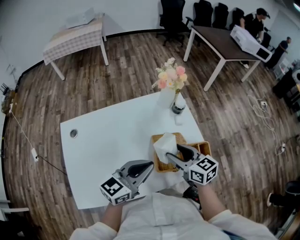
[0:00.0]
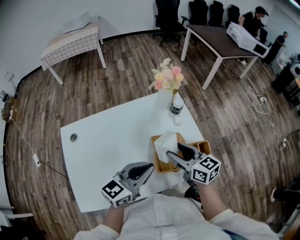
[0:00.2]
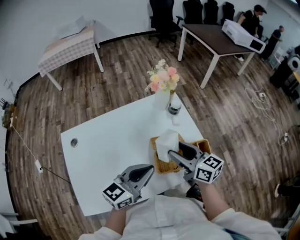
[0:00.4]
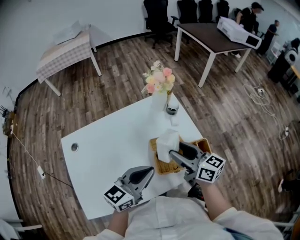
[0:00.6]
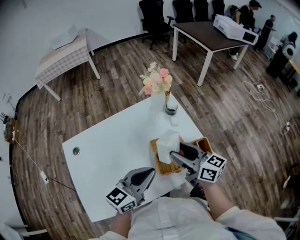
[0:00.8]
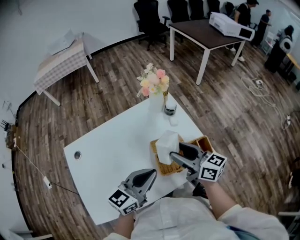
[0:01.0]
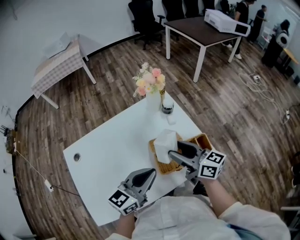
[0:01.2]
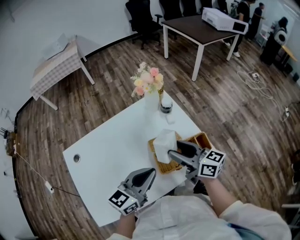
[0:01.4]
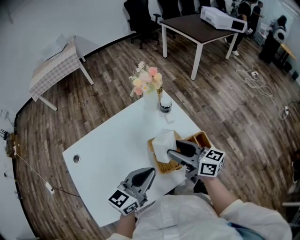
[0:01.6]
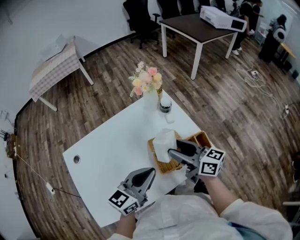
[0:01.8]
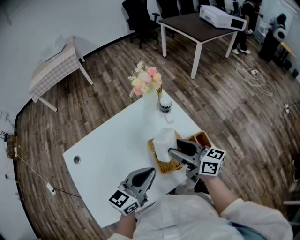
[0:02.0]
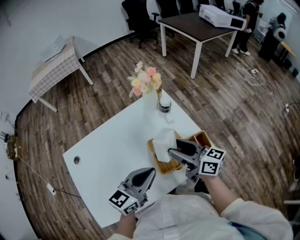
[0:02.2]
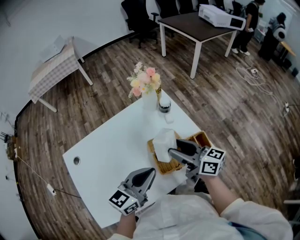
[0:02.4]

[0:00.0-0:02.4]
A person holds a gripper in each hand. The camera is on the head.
0:00.0 to 0:01.2: The right gripper travels upward by approximately 5 cm, and rotates some 20 degrees.
0:01.2 to 0:02.4: The two grippers keep their place.

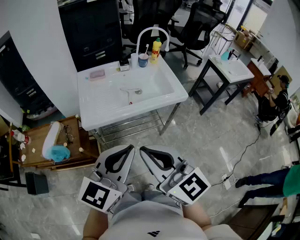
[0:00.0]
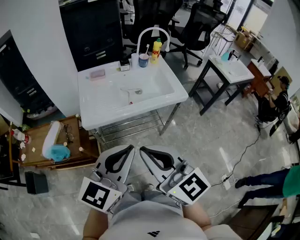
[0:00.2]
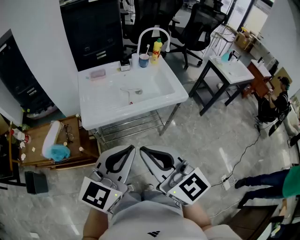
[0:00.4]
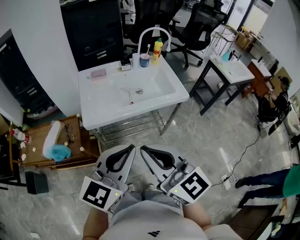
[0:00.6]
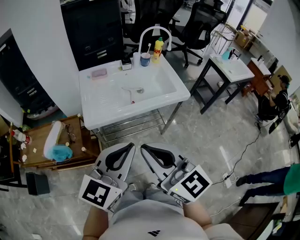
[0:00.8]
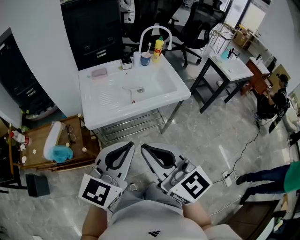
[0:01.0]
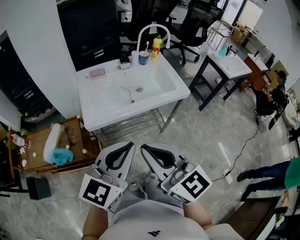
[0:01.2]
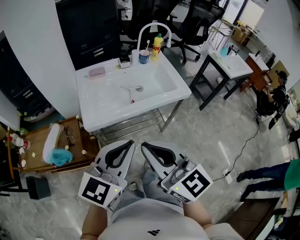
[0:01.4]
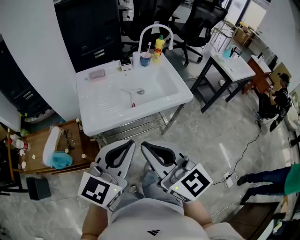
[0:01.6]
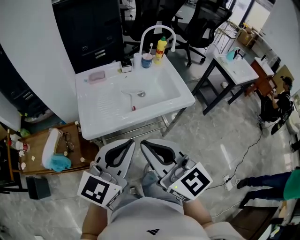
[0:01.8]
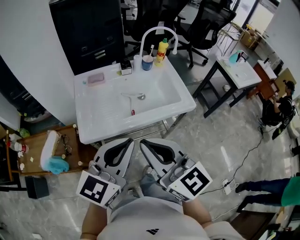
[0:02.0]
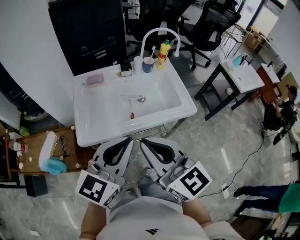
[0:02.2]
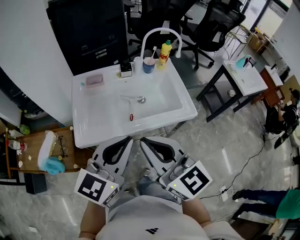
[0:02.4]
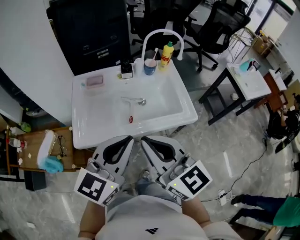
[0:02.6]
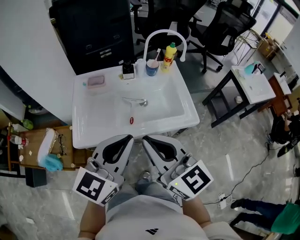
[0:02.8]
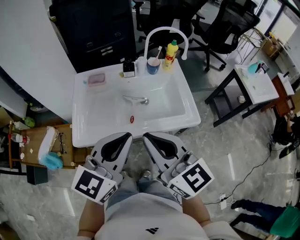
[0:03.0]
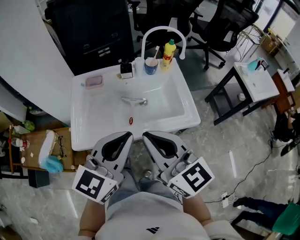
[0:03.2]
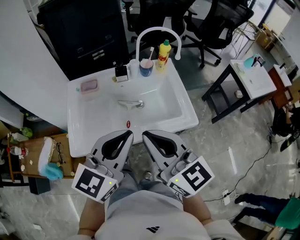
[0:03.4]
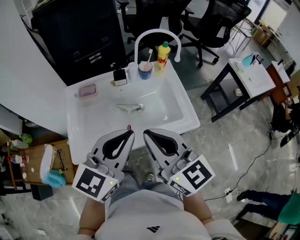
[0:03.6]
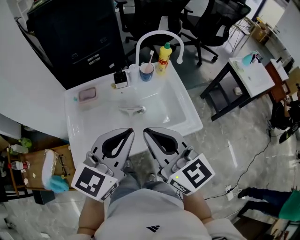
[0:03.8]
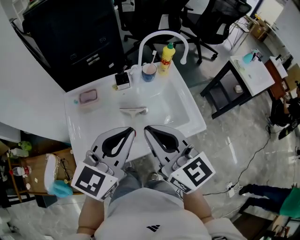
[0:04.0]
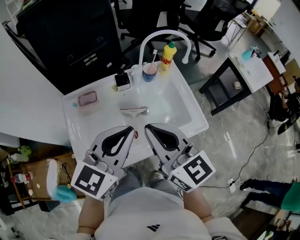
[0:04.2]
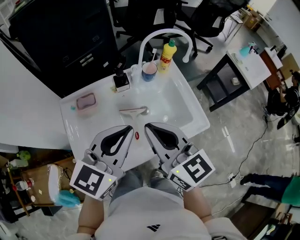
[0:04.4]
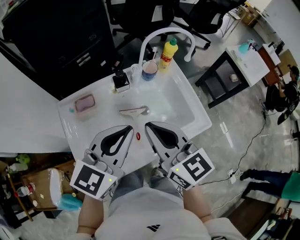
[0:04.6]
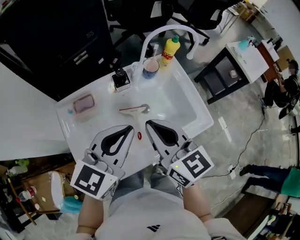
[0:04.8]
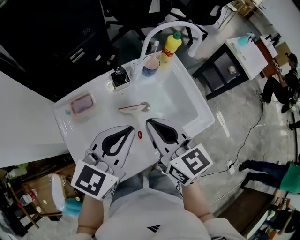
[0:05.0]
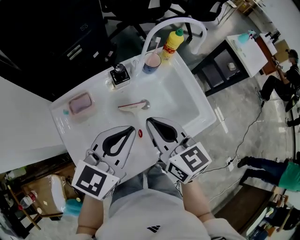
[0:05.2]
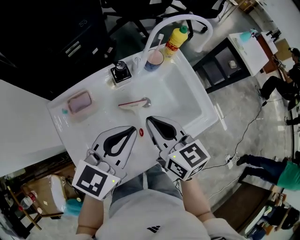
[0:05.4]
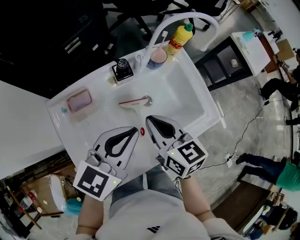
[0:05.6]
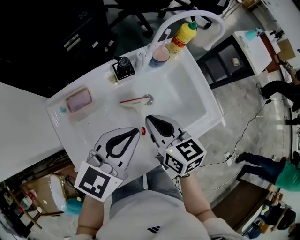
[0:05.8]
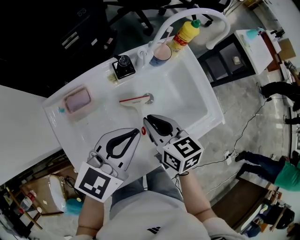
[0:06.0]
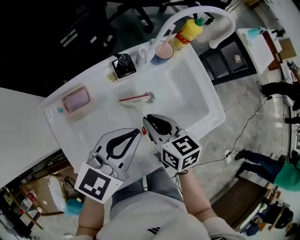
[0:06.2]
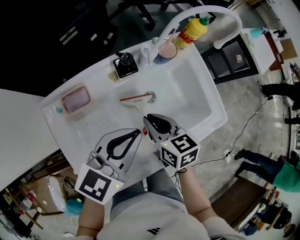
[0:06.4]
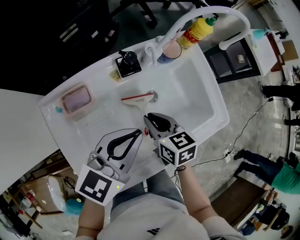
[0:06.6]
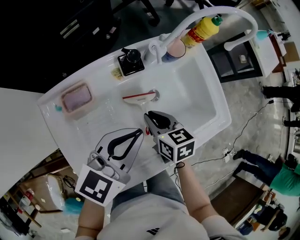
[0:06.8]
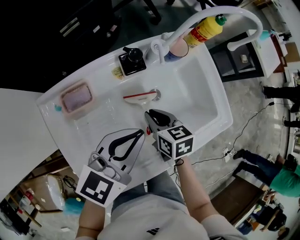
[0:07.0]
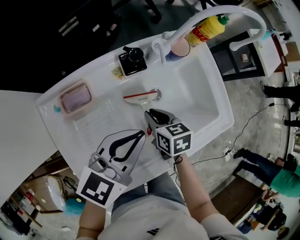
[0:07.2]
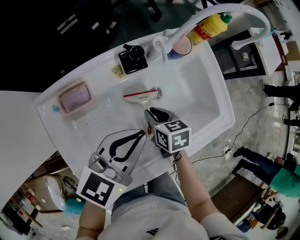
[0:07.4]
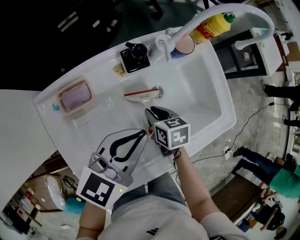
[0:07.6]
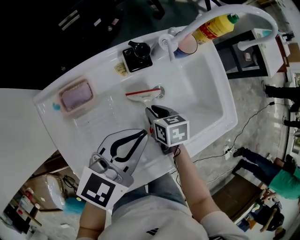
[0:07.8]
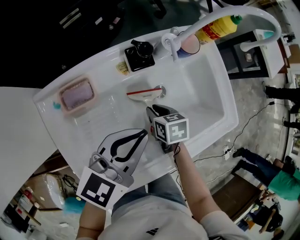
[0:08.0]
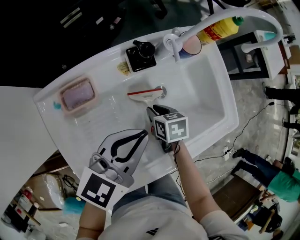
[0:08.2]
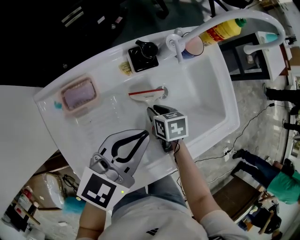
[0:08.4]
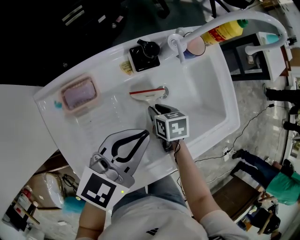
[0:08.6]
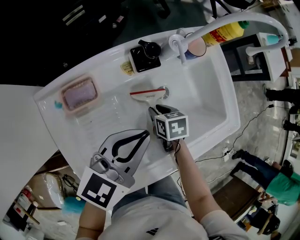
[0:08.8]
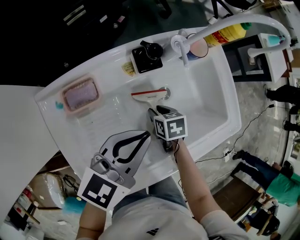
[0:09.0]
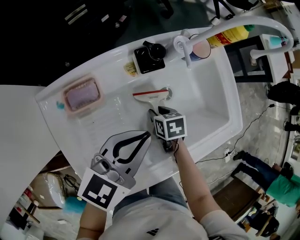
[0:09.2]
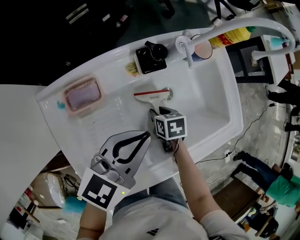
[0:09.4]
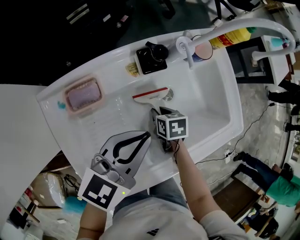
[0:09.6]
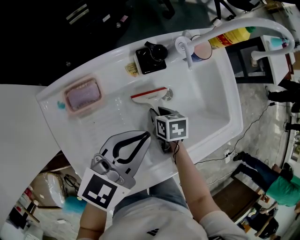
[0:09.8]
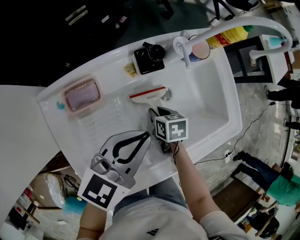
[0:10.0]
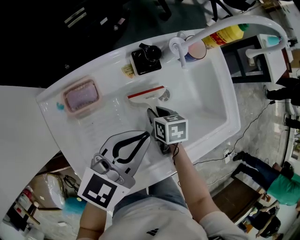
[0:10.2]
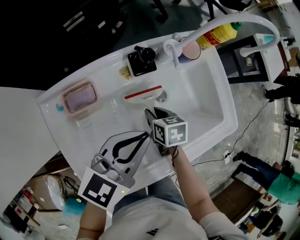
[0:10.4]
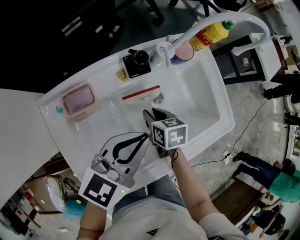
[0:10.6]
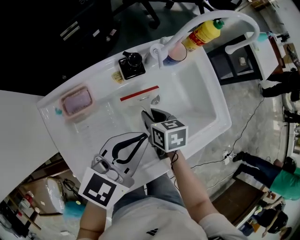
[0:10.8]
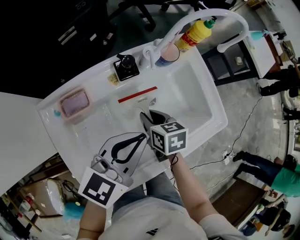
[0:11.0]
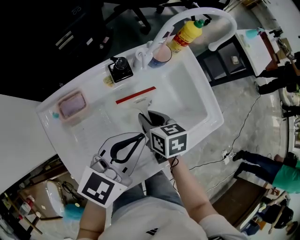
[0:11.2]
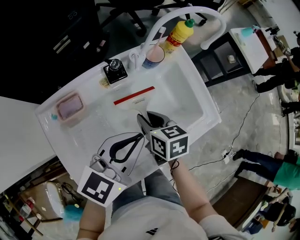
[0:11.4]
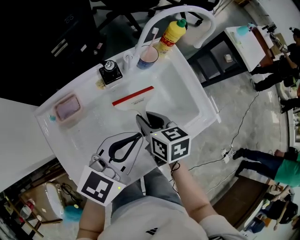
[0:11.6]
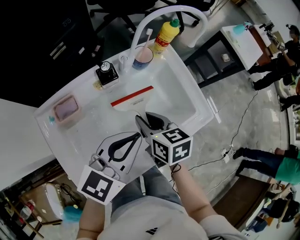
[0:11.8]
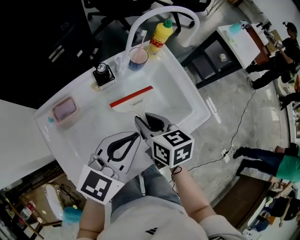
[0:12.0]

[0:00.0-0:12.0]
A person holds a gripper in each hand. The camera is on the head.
0:00.0 to 0:01.6: Both grippers travel together forward, approximately 5 cm.
0:01.6 to 0:03.0: Both grippers travel together forward and to the right, approximately 20 cm.
0:03.0 to 0:04.4: The grippers both shift forward by roughly 15 cm.
0:04.4 to 0:06.0: The right gripper is displaced downward and forward by about 20 cm, and swivels roughly 30 degrees; the left gripper shifts approximately 10 cm downward and forward.
0:06.0 to 0:07.6: The right gripper goes about 15 cm downward, and rotates roughly 20 degrees. The left gripper shifts by some 5 cm.
0:07.6 to 0:09.0: The right gripper is displaced downward by roughly 5 cm.
0:09.0 to 0:10.4: The grippers move only a little.
0:10.4 to 0:12.0: The right gripper travels upward by about 20 cm, and swivels roughly 20 degrees. The left gripper heads to the right and upward, covering approximately 10 cm.

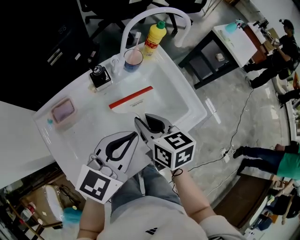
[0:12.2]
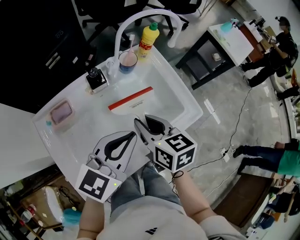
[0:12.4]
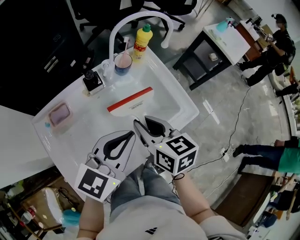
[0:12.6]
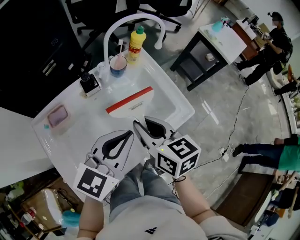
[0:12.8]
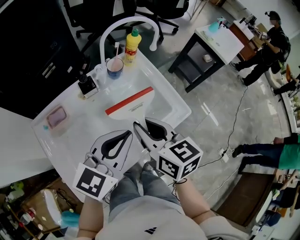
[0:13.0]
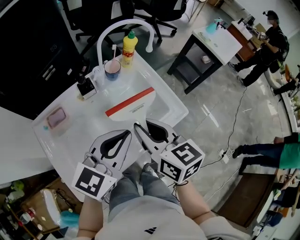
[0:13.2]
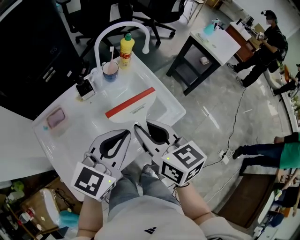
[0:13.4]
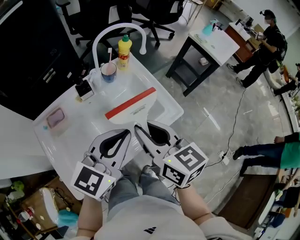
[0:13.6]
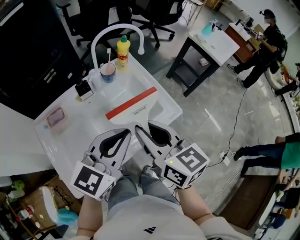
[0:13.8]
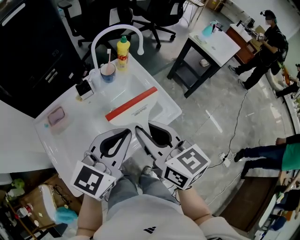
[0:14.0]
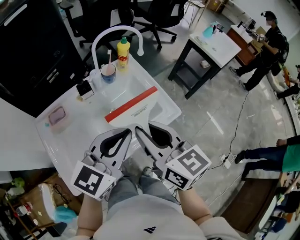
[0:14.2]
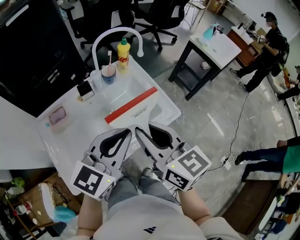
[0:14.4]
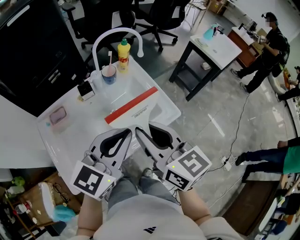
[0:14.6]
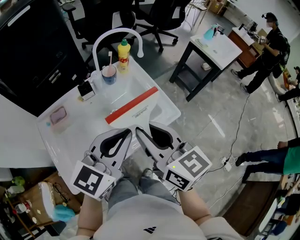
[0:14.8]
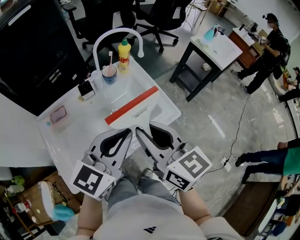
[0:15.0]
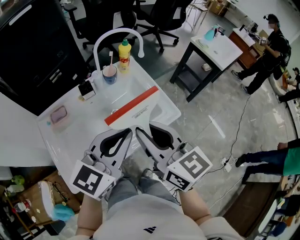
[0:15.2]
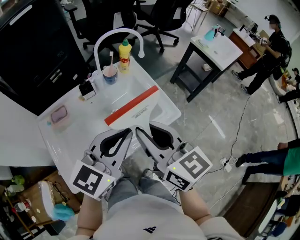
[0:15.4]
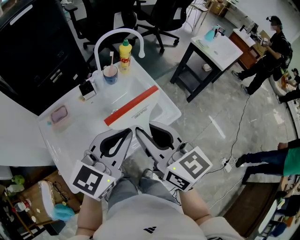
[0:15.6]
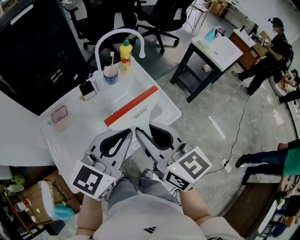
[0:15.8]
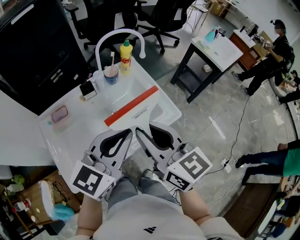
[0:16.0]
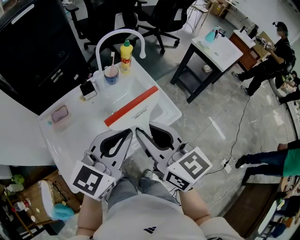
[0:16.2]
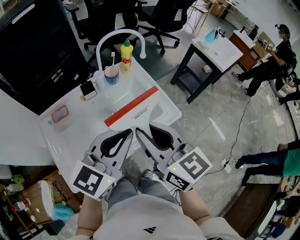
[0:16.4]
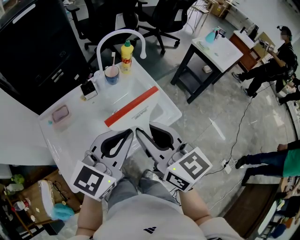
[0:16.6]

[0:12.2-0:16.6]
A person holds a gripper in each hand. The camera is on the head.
0:12.2 to 0:13.6: The left gripper shifts roughly 10 cm to the right and upward, while the right gripper shifts about 15 cm upward, to the right and backward.
0:13.6 to 0:15.2: The right gripper moves approximately 5 cm.
0:15.2 to 0:16.6: Both grippers stay about where they are.

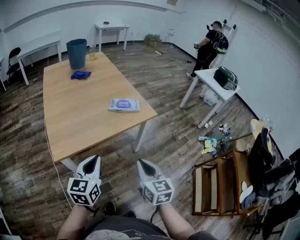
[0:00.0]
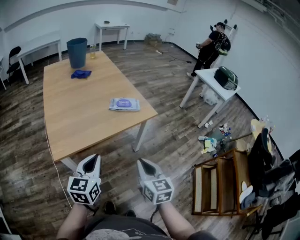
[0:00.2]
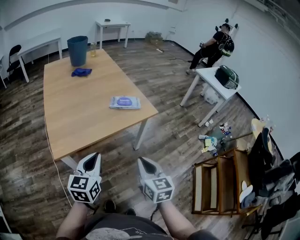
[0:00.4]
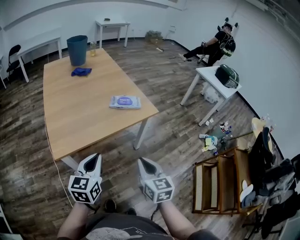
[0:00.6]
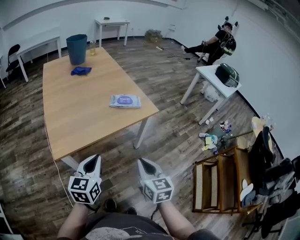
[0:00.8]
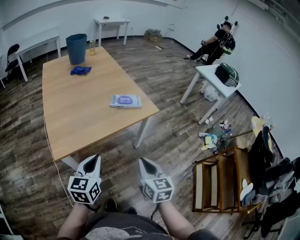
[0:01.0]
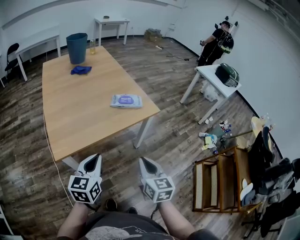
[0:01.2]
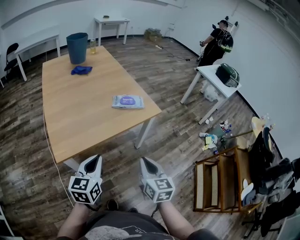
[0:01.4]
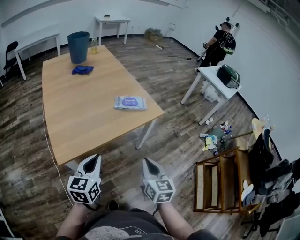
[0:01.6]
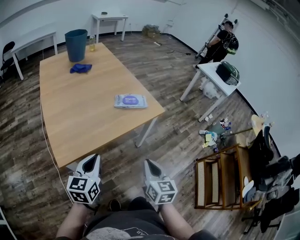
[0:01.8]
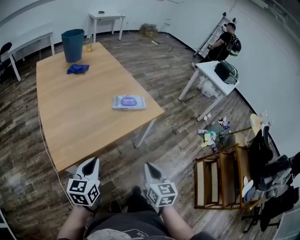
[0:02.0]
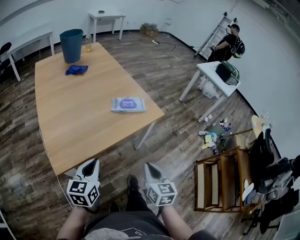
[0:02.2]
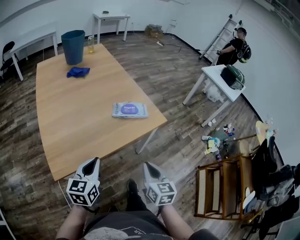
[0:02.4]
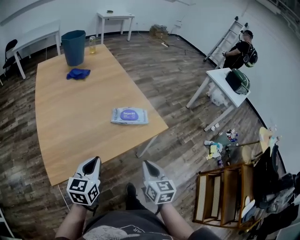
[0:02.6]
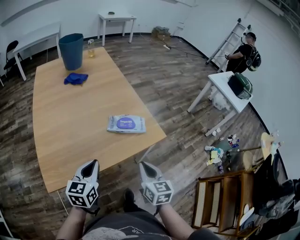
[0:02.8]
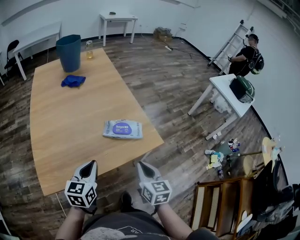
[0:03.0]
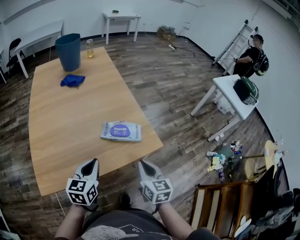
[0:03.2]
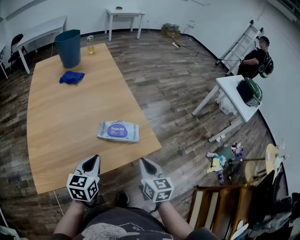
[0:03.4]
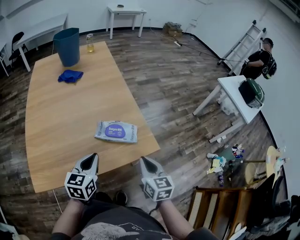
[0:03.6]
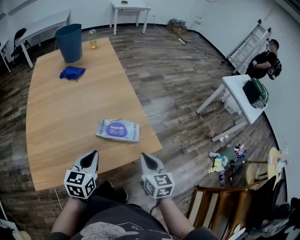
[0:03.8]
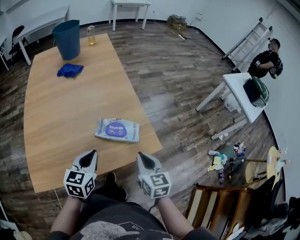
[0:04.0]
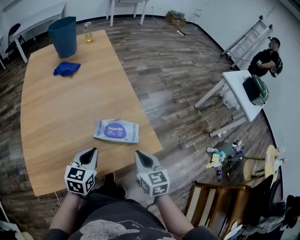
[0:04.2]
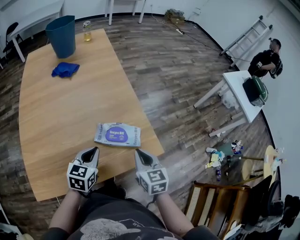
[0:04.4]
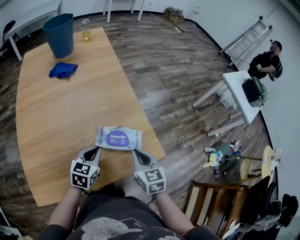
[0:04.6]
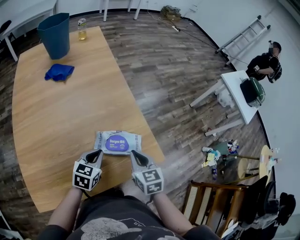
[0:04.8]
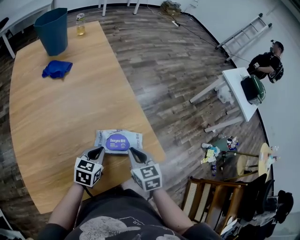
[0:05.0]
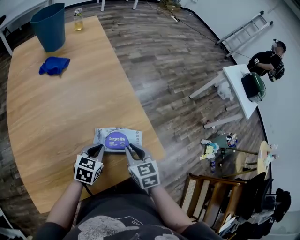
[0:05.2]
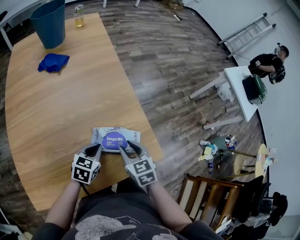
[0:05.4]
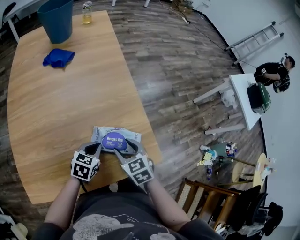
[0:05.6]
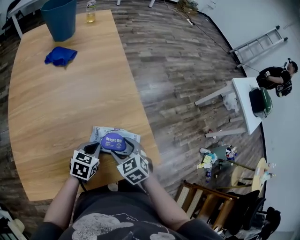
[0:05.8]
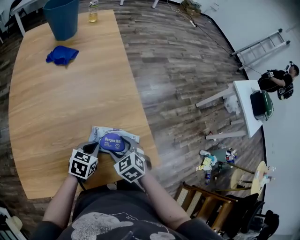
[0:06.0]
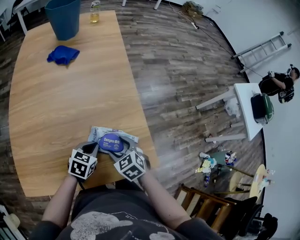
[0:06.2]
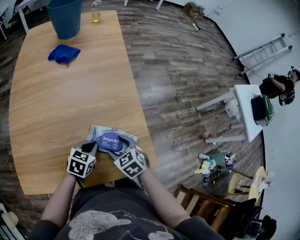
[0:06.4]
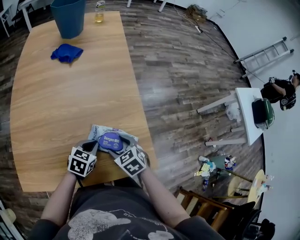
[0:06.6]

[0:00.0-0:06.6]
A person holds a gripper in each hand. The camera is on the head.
0:00.0 to 0:01.6: The left gripper ends up some 5 cm from where it was.
0:01.6 to 0:03.2: The grippers both shift forward by approximately 25 cm.
0:03.2 to 0:05.0: The grippers both shift forward and downward by about 15 cm. The left gripper swivels about 20 degrees.
0:05.0 to 0:06.6: The right gripper moves downward, approximately 5 cm, swivels approximately 40 degrees, and opens its fingers.
